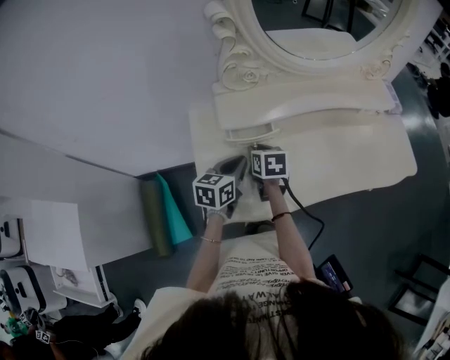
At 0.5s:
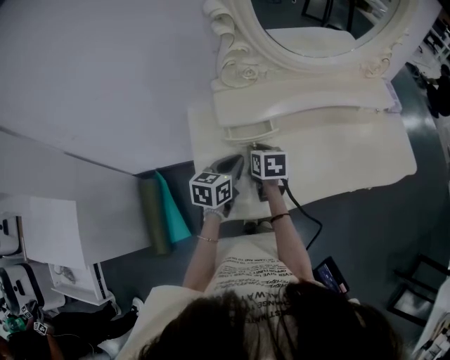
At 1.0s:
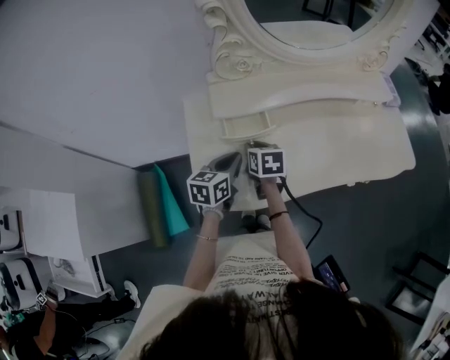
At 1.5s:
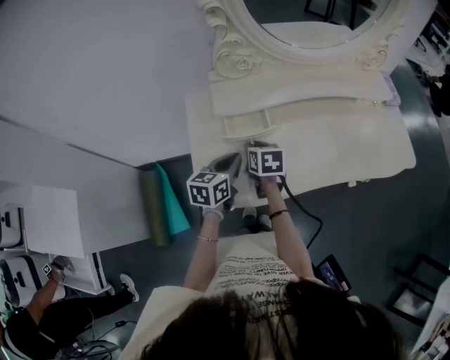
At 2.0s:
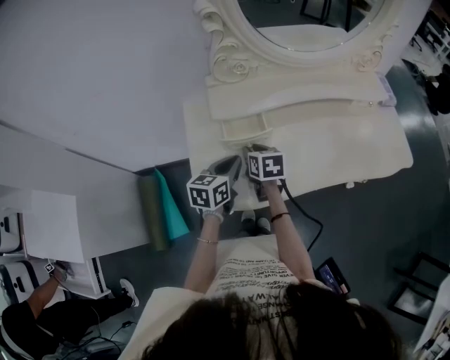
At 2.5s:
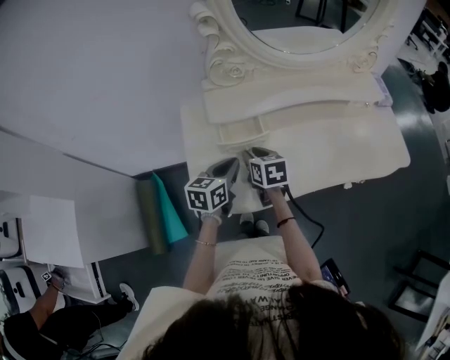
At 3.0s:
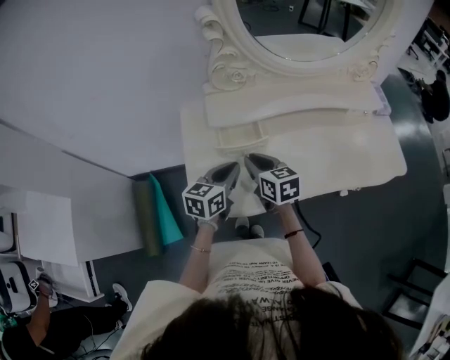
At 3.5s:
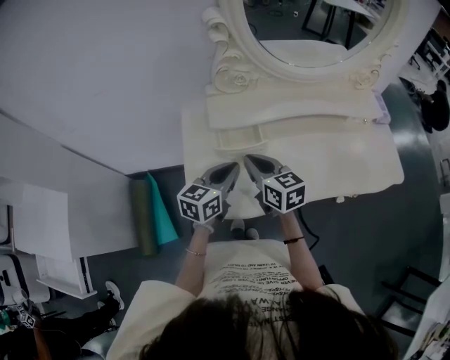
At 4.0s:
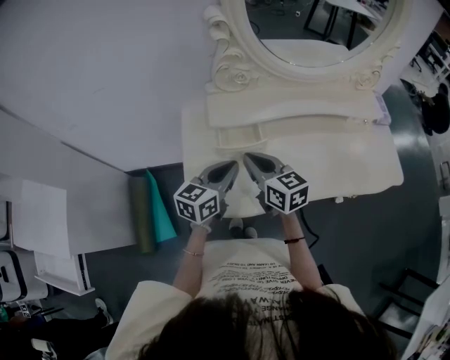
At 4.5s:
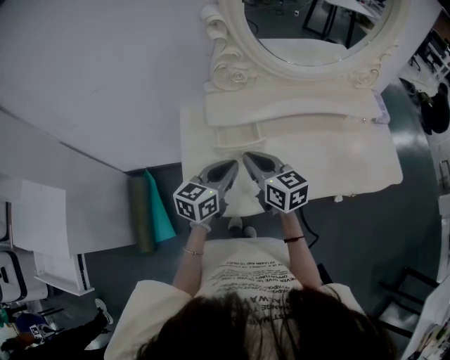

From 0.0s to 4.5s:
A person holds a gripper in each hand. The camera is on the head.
From 0.0s to 2.0s: There are only small adjustments of the grippers.
From 2.0s to 4.5s: The right gripper is displaced upward by approximately 10 cm, rotates some 30 degrees, and closes up. The left gripper heads upward, covering some 5 cm.

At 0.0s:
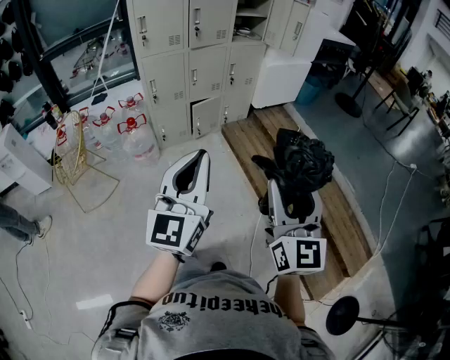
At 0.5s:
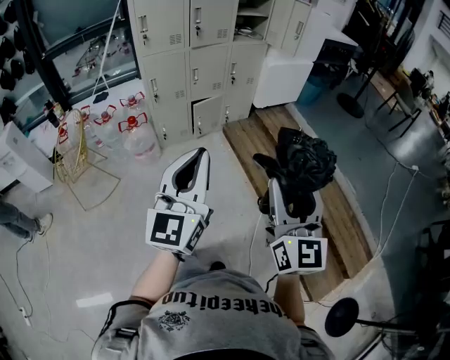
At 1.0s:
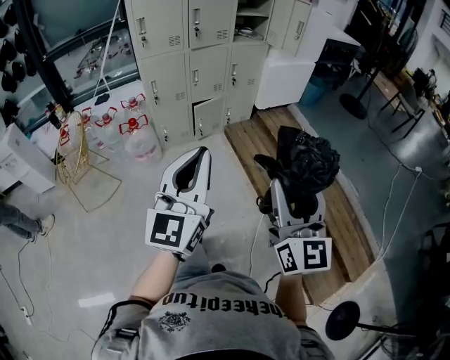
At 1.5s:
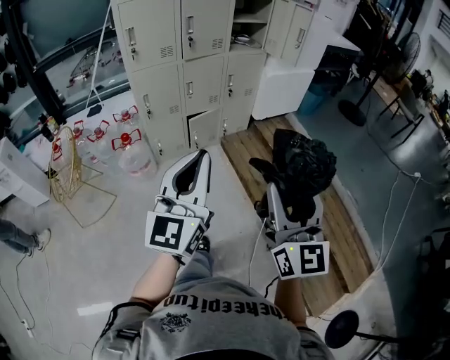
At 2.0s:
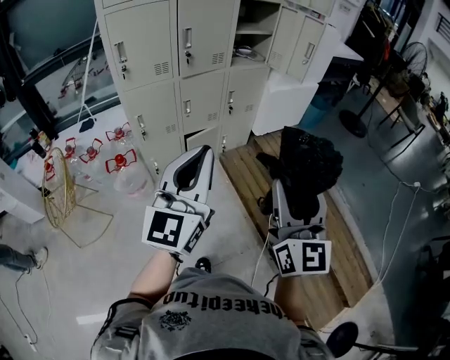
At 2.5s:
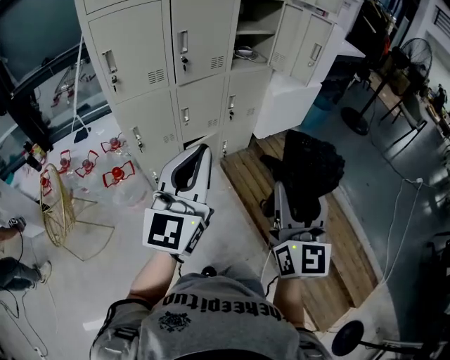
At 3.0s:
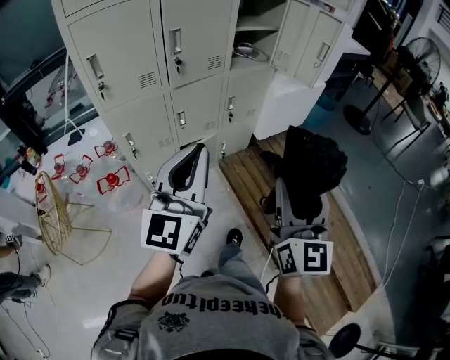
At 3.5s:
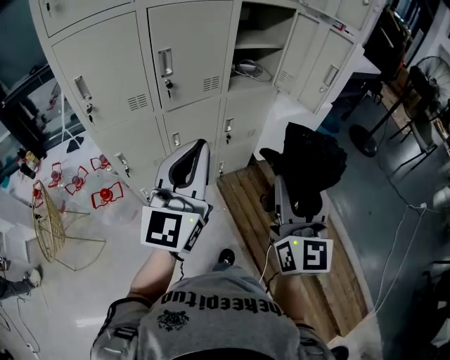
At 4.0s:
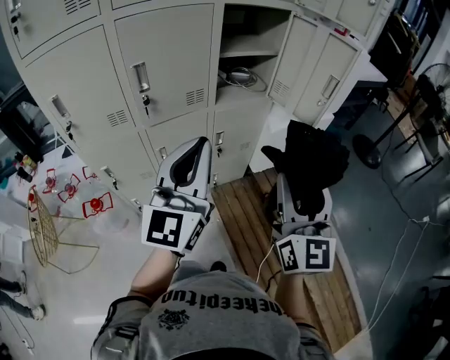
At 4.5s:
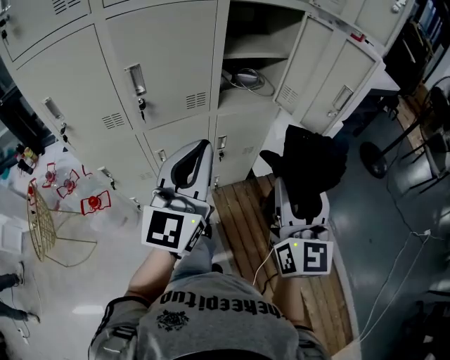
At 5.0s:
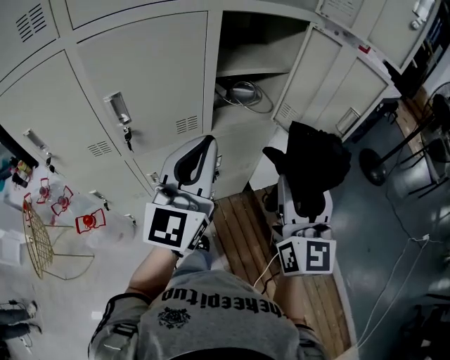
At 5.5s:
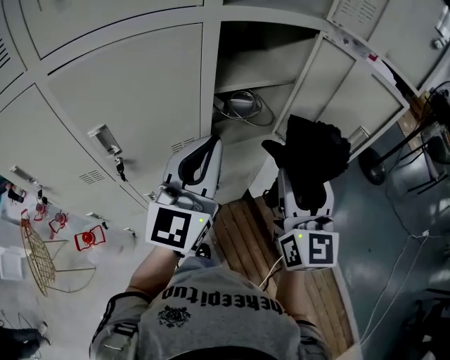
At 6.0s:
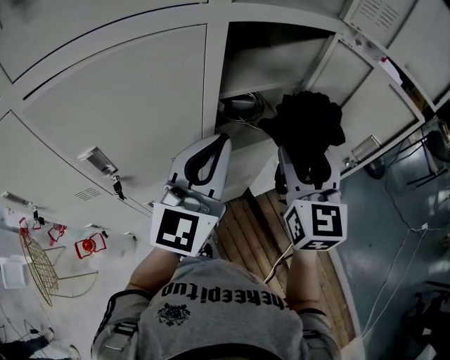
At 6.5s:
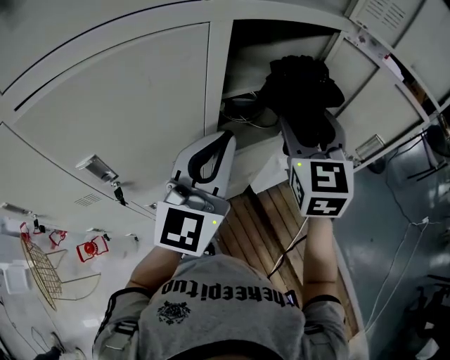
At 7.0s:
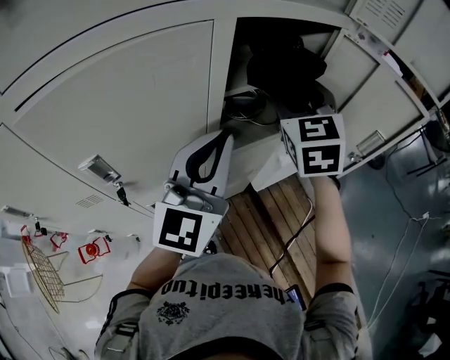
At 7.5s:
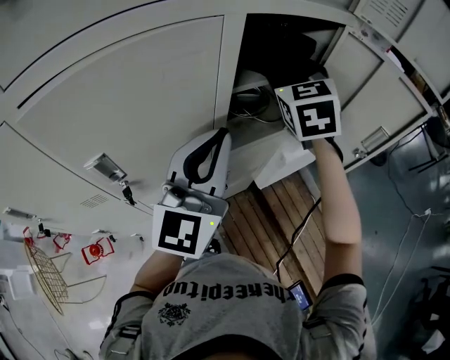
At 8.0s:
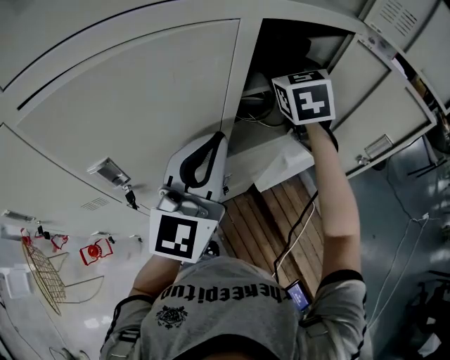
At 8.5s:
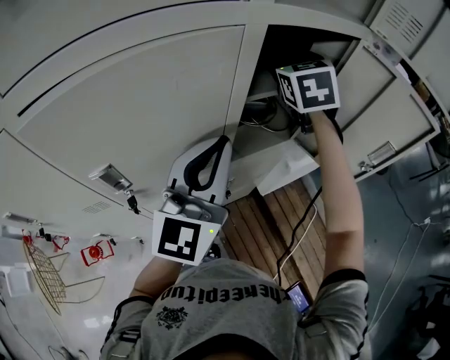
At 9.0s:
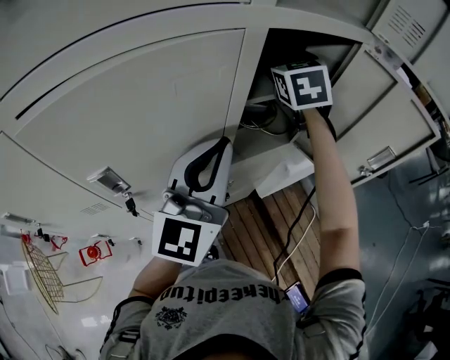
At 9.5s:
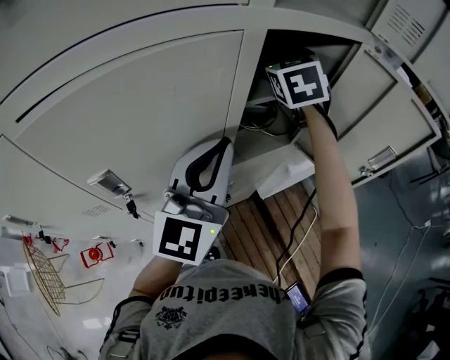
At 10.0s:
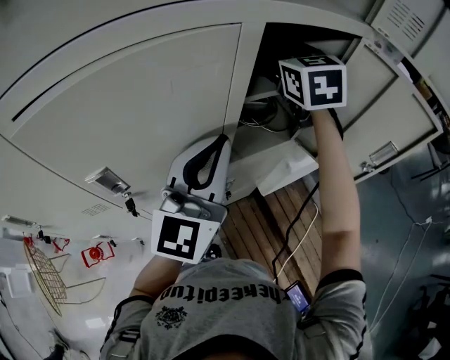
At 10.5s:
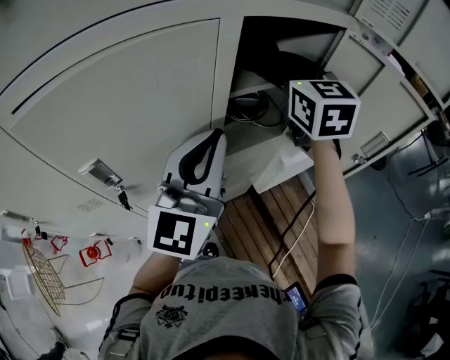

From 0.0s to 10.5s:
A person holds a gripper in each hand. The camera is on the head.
From 0.0s to 2.0s: Both grippers travel together forward, about 30 cm.
From 2.0s to 4.0s: The two grippers travel together, forward, roughly 40 cm.
From 4.0s to 6.5s: Both grippers move forward, about 35 cm. The right gripper swivels some 30 degrees.
From 6.5s to 8.5s: The right gripper moves forward and to the left, some 15 cm.
From 8.5s to 10.5s: The right gripper is displaced backward by some 5 cm, rotates about 20 degrees, and closes.

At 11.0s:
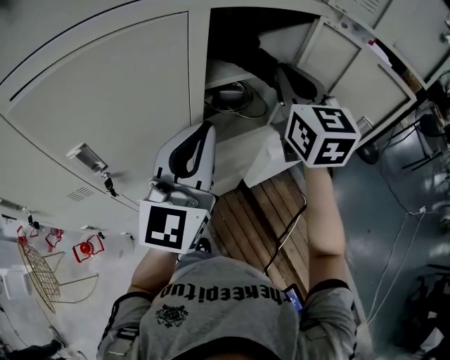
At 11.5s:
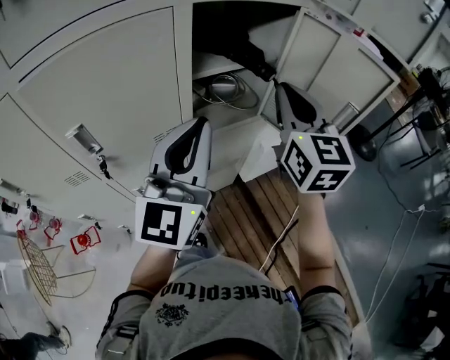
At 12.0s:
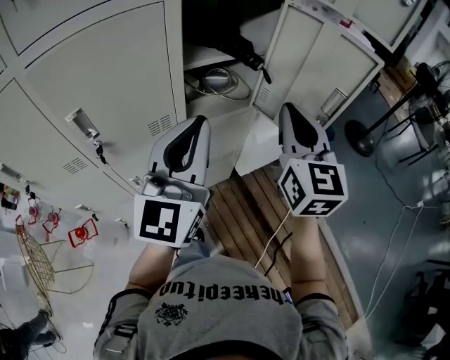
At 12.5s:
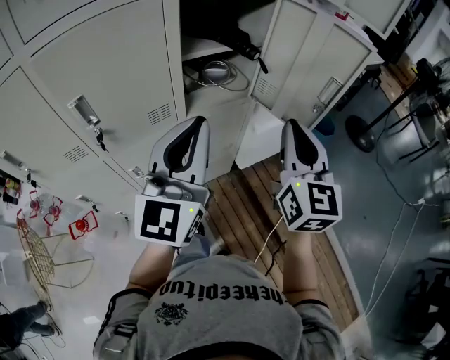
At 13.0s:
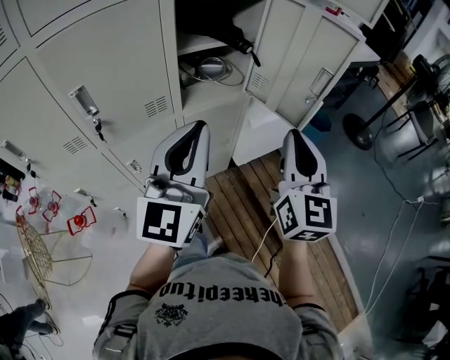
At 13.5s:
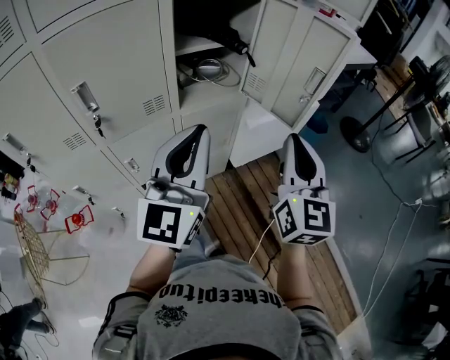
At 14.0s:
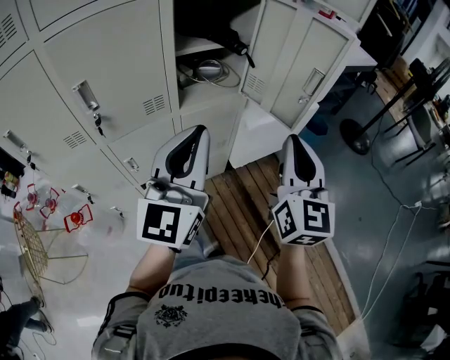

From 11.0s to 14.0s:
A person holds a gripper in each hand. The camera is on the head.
From 11.0s to 12.5s: The left gripper is displaced backward and to the right by roughly 10 cm, while the right gripper travels backward and to the right by roughly 20 cm.
From 12.5s to 14.0s: Both grippers move backward, approximately 5 cm.

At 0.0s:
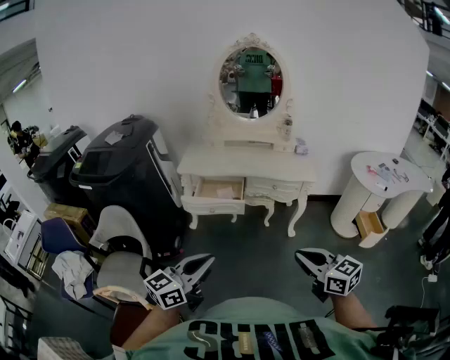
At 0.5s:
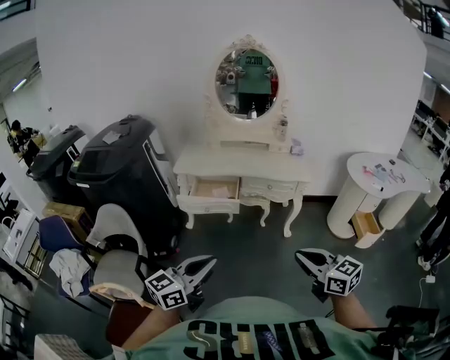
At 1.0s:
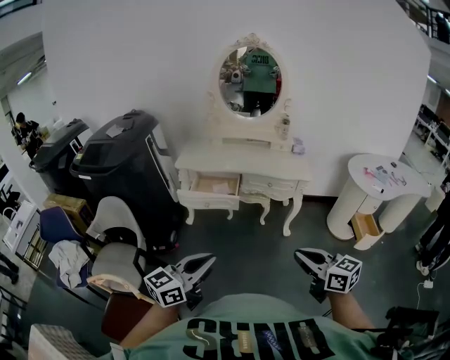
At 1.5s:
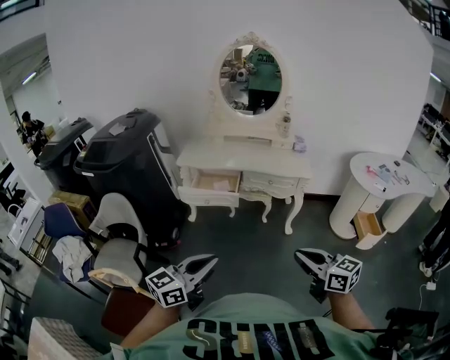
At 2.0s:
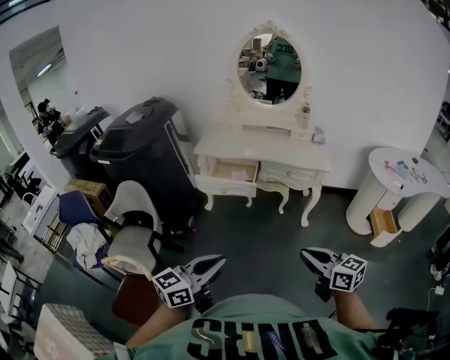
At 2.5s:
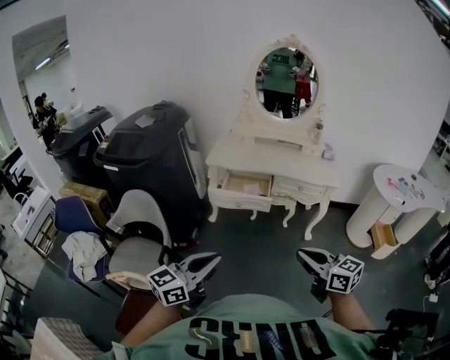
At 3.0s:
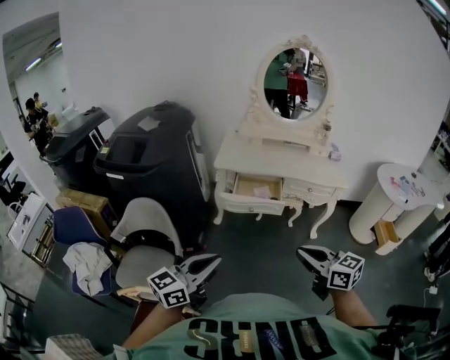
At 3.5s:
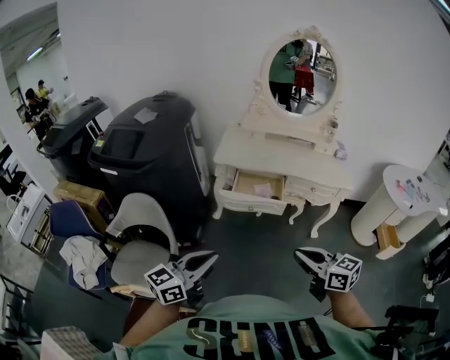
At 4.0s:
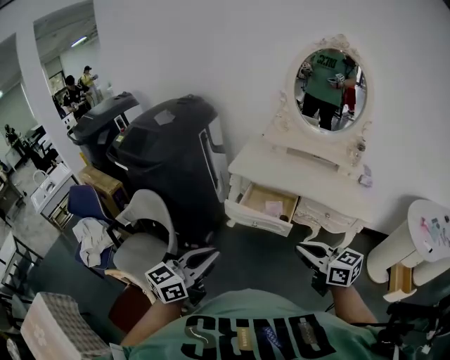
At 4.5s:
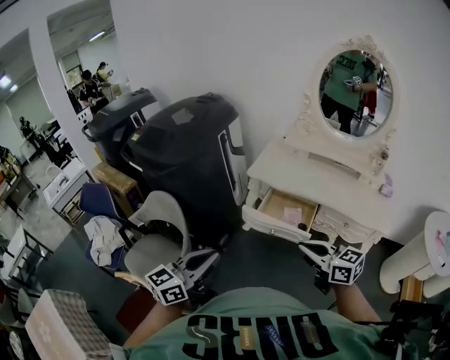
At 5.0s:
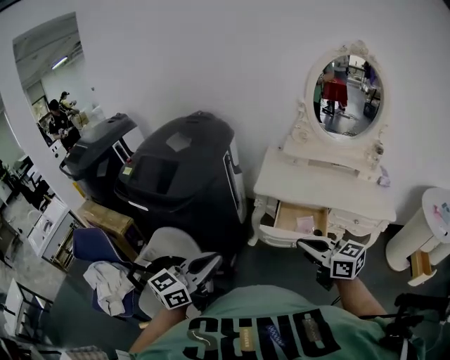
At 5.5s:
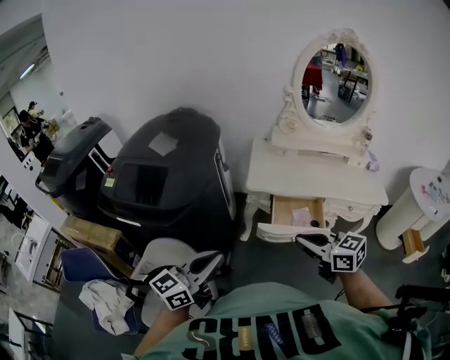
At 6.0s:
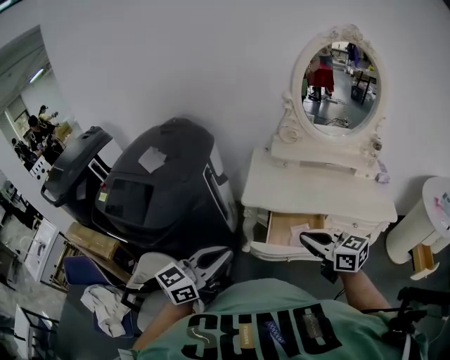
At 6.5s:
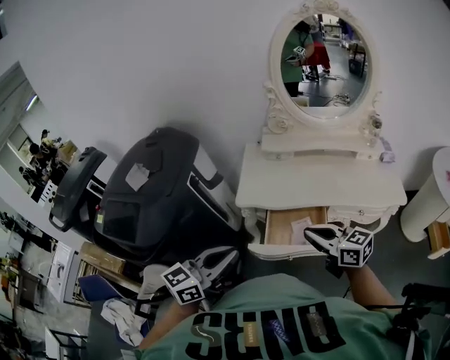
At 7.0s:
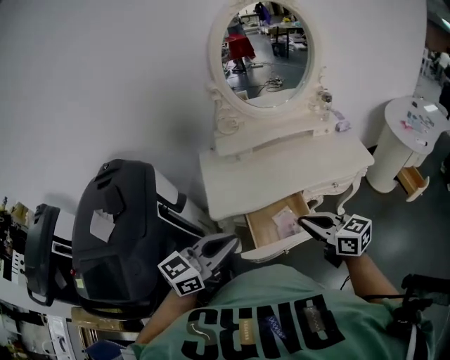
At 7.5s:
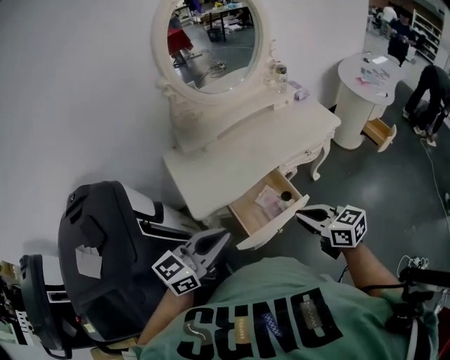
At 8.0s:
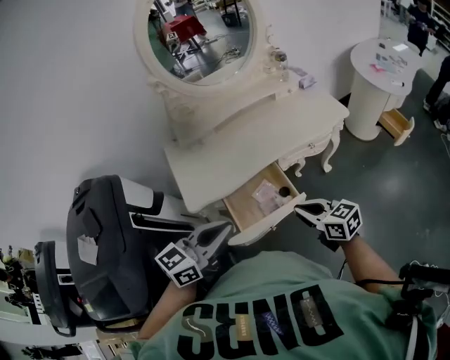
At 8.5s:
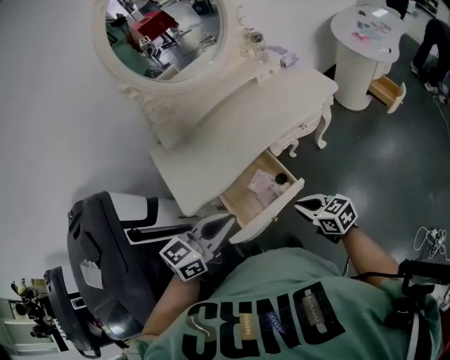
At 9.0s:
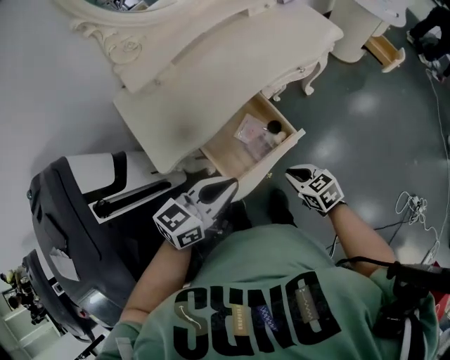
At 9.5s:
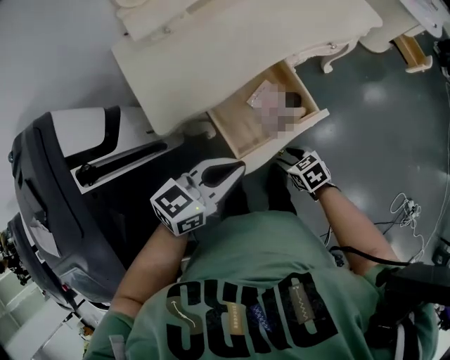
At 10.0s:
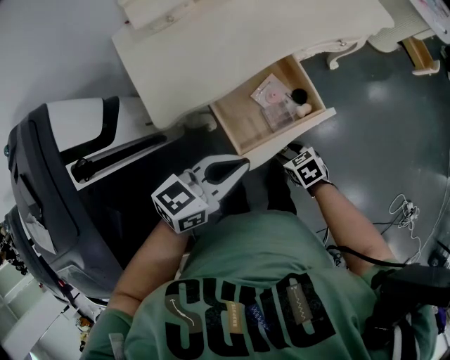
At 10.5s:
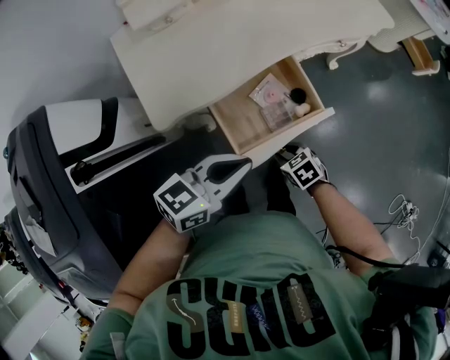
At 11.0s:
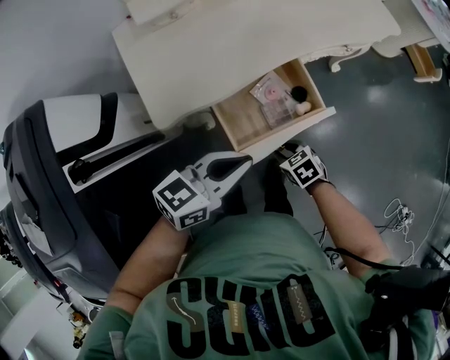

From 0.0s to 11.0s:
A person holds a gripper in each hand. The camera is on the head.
From 0.0s to 2.0s: The right gripper ends up approximately 5 cm from where it was. The left gripper is displaced backward and to the right by some 10 cm.
From 2.0s to 3.5s: Both grippers travel together to the left and forward, roughly 30 cm.
From 3.5s to 5.5s: Both grippers move forward and to the left, some 30 cm.
From 5.5s to 7.5s: The left gripper changes place by about 30 cm, and changes its angle by roughly 40 degrees. The right gripper shifts by approximately 20 cm, and changes its angle by about 40 degrees.
From 7.5s to 9.0s: The right gripper is displaced downward by approximately 25 cm, and turns by approximately 20 degrees. Meanwhile the left gripper heads downward, to the right and forward, covering roughly 20 cm.
From 9.0s to 11.0s: The right gripper goes some 10 cm downward, changes its angle by approximately 20 degrees, and opens its fingers. The left gripper shifts about 5 cm downward.
